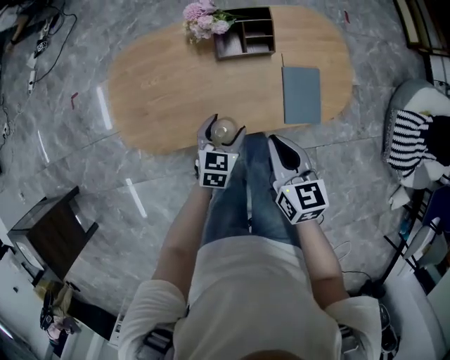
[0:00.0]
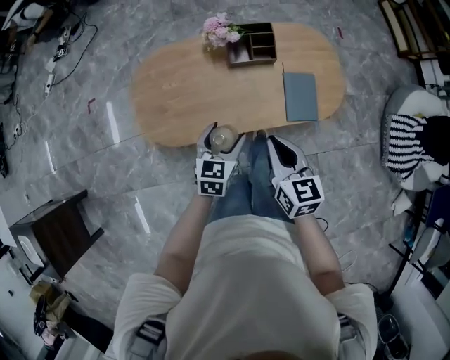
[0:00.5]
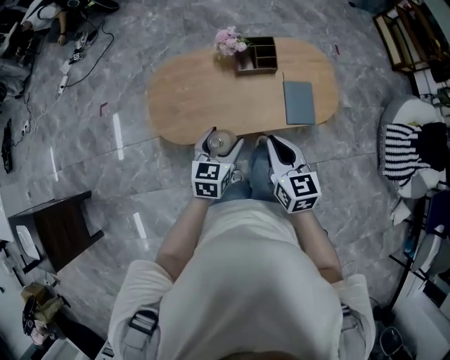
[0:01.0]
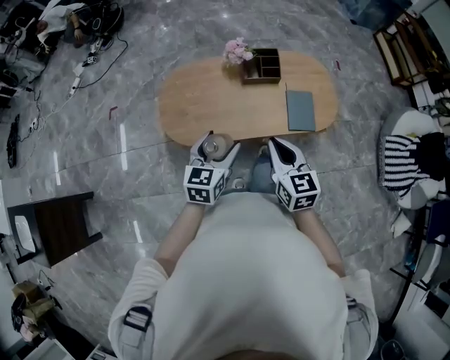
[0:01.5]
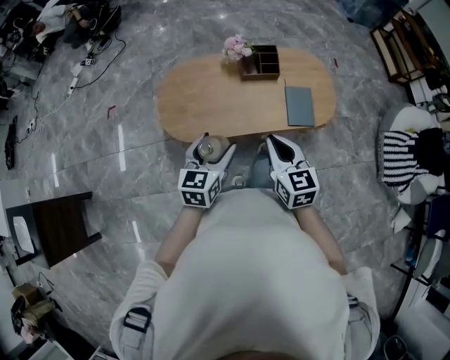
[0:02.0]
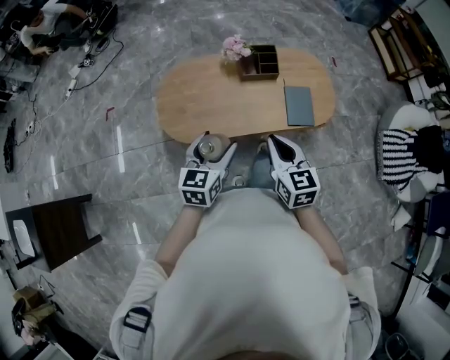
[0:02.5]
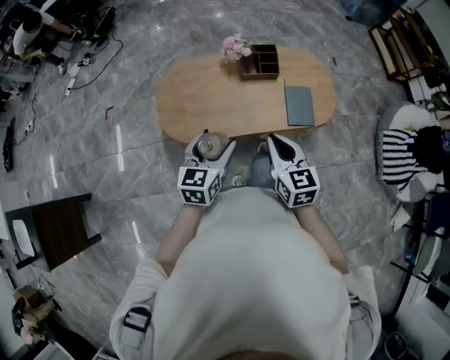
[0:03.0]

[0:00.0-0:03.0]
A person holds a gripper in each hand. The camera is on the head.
0:00.0 to 0:01.5: Both grippers travel together upward and backward, about 25 cm.
0:01.5 to 0:03.0: The grippers make only small movements.

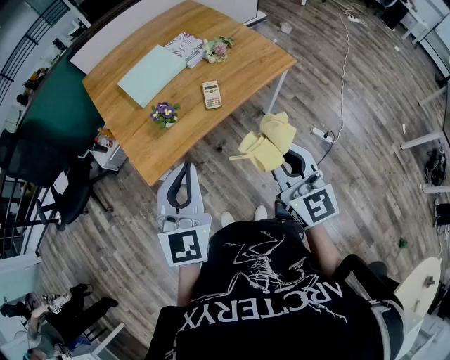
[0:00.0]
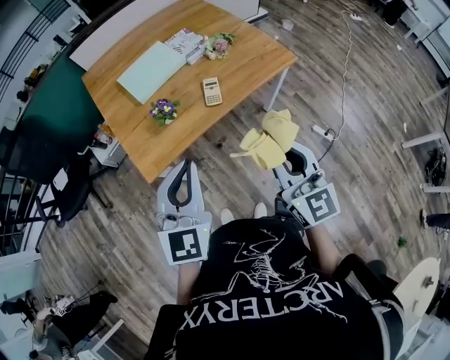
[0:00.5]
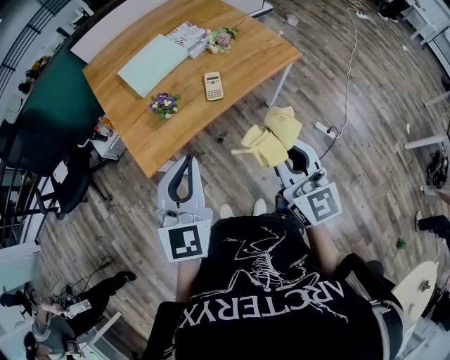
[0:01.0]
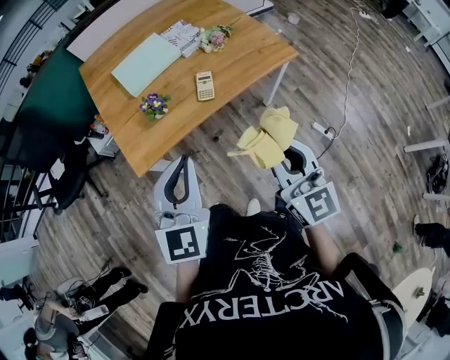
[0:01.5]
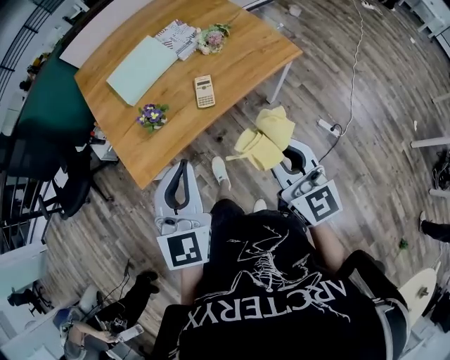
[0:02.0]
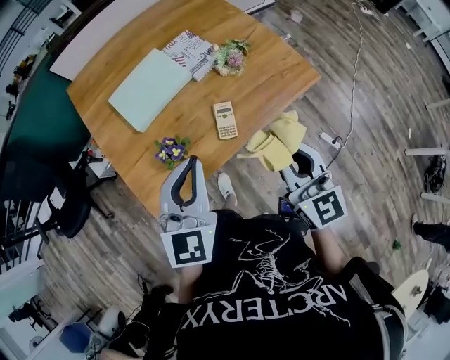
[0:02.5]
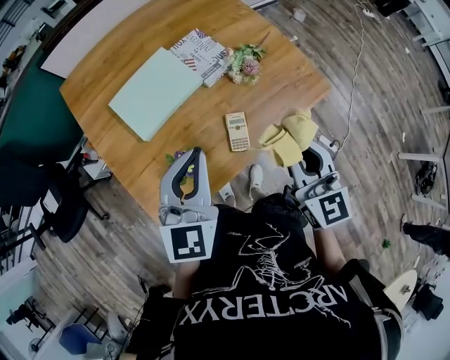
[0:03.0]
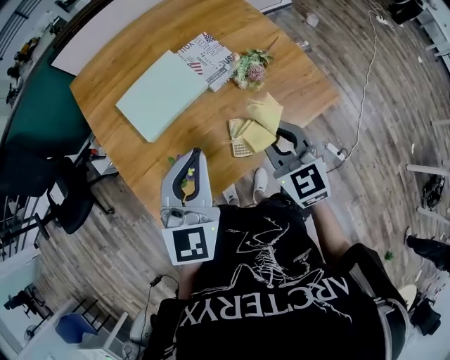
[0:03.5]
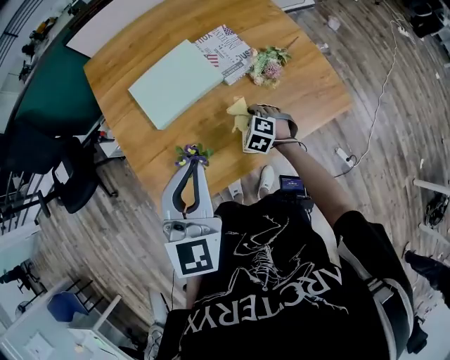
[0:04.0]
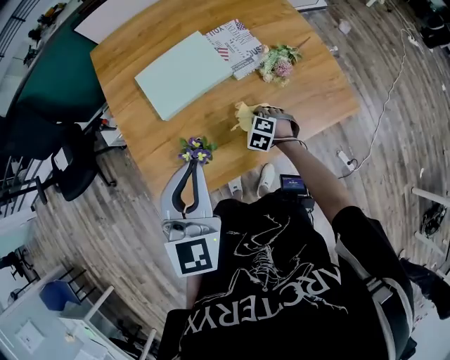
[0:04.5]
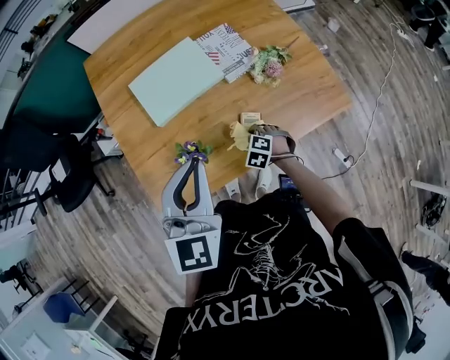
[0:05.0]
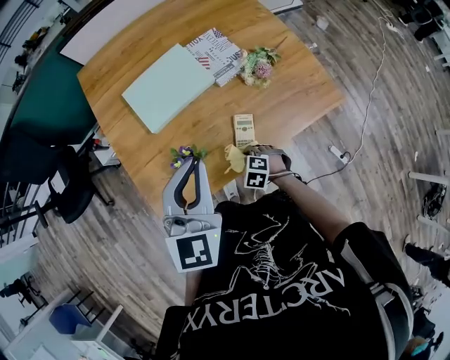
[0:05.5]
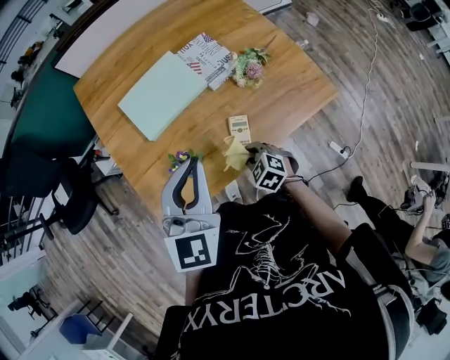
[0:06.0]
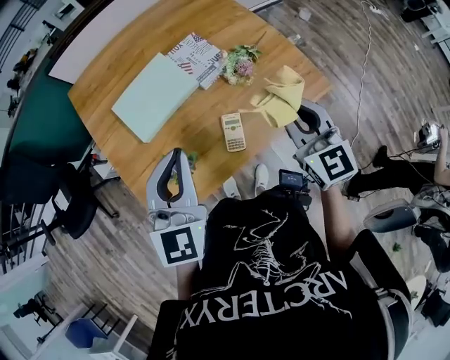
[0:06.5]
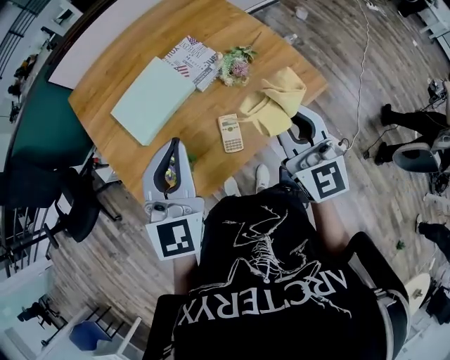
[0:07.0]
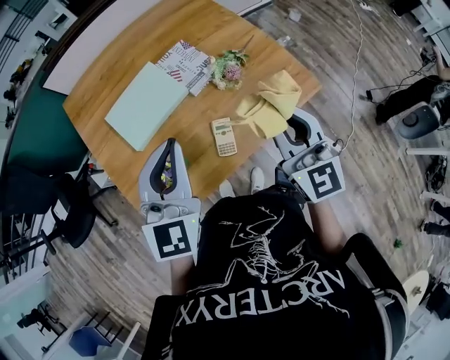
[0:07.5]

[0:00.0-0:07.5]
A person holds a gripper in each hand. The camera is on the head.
0:00.0 to 0:02.0: The right gripper is displaced forward and to the right by about 10 cm, while the left gripper shifts about 10 cm to the right and forward.
0:02.0 to 0:04.0: The right gripper travels forward and downward by about 50 cm, and points its fingers approximately 60 degrees further downward. The left gripper heads forward, covering roughly 25 cm.
0:04.0 to 0:05.5: The right gripper goes some 15 cm backward.
0:05.5 to 0:07.5: The left gripper ends up about 5 cm from where it was. Meanwhile the right gripper goes approximately 40 cm upward, and points its fingers about 70 degrees further upward.

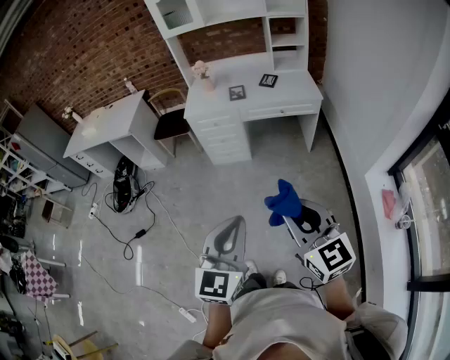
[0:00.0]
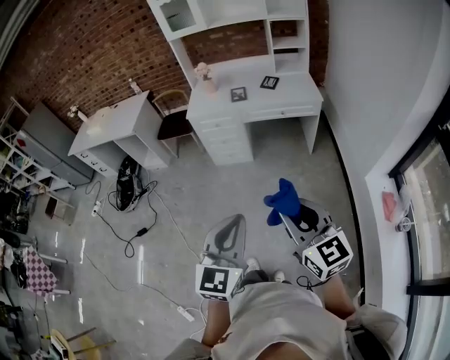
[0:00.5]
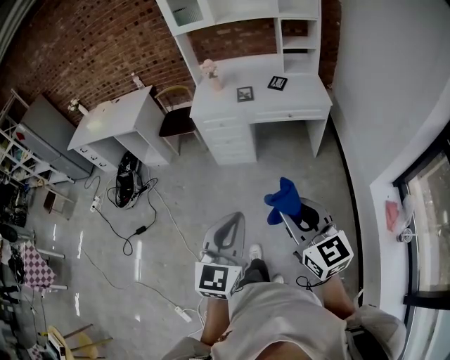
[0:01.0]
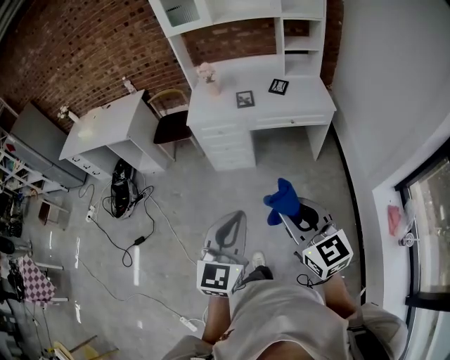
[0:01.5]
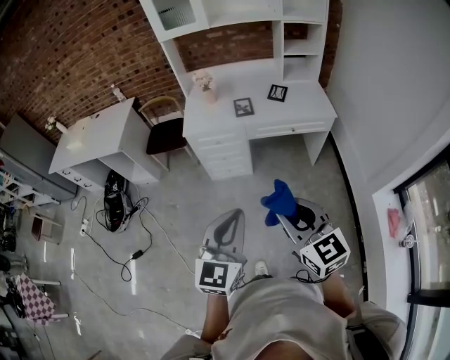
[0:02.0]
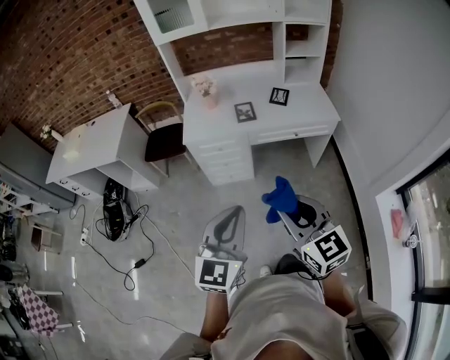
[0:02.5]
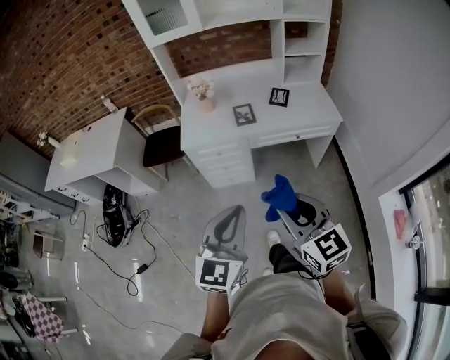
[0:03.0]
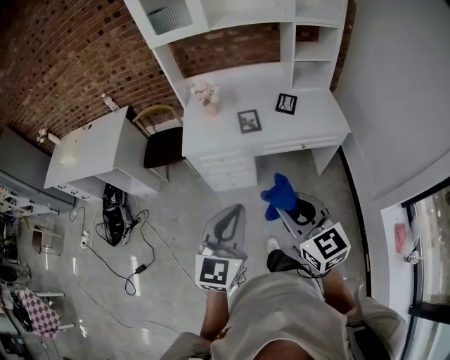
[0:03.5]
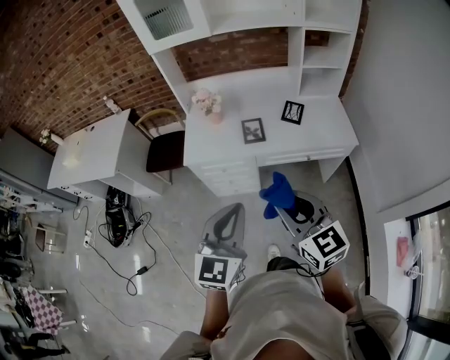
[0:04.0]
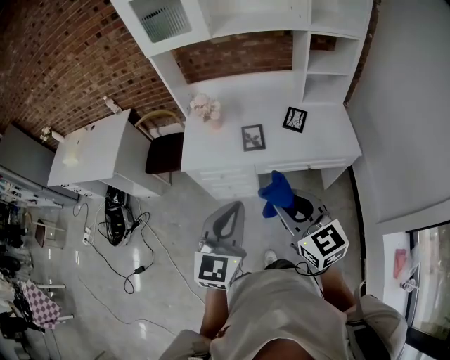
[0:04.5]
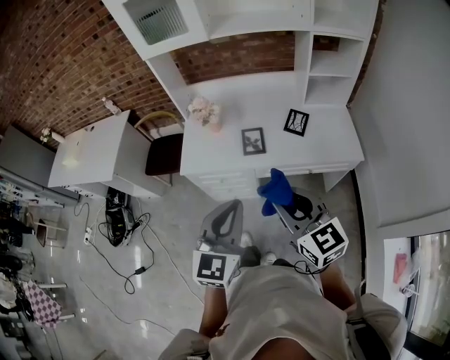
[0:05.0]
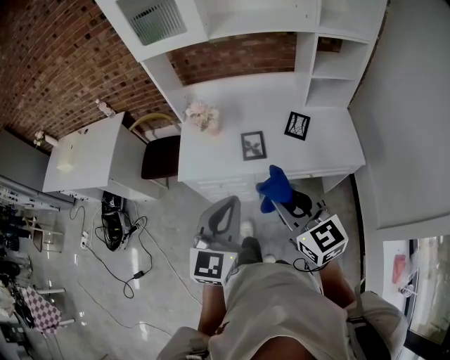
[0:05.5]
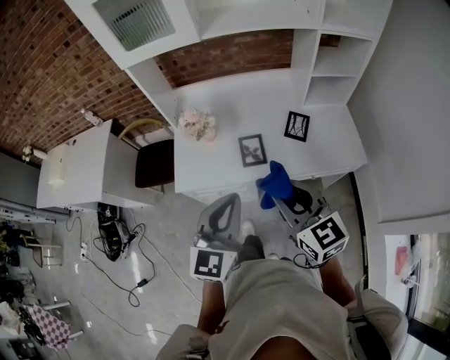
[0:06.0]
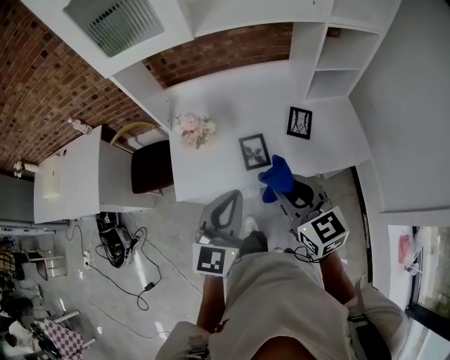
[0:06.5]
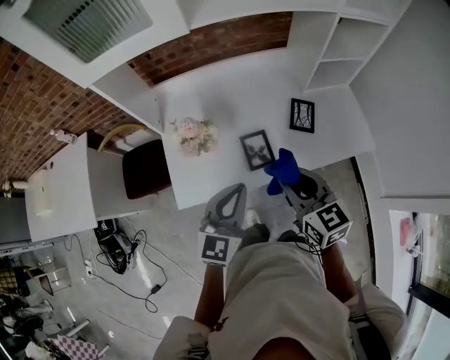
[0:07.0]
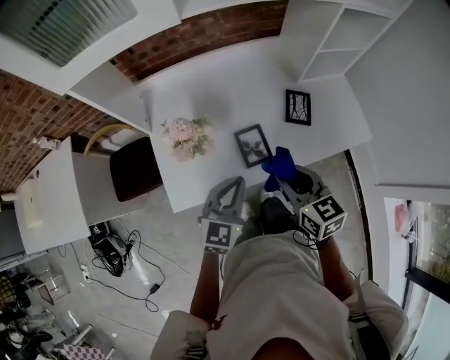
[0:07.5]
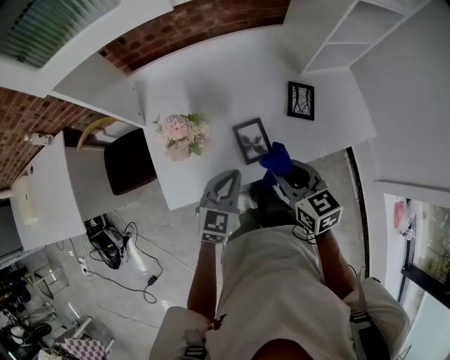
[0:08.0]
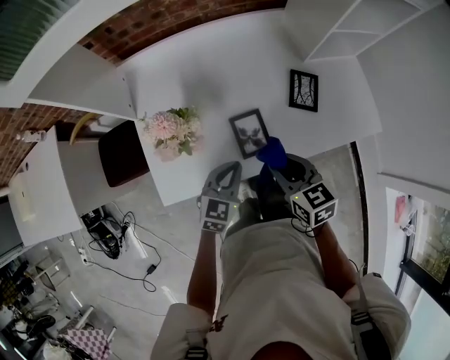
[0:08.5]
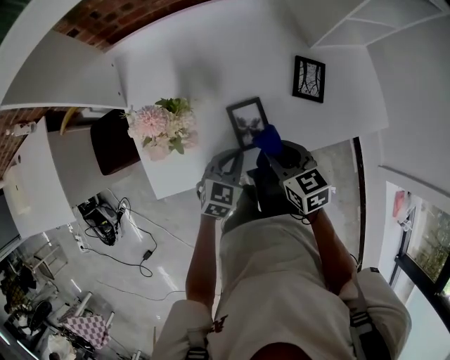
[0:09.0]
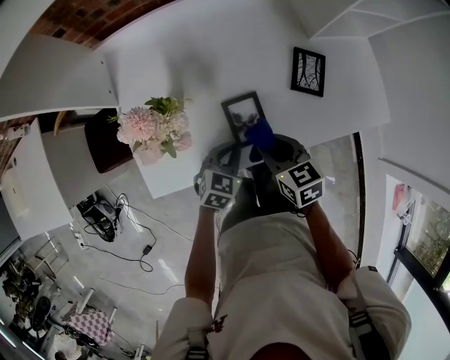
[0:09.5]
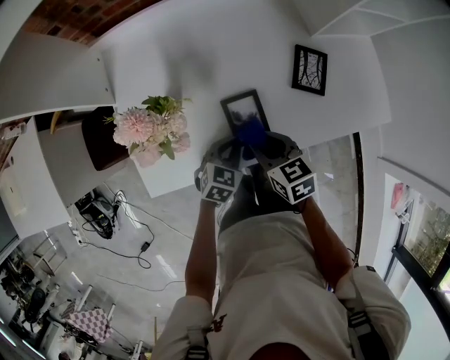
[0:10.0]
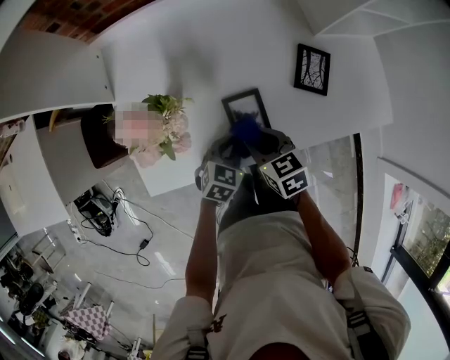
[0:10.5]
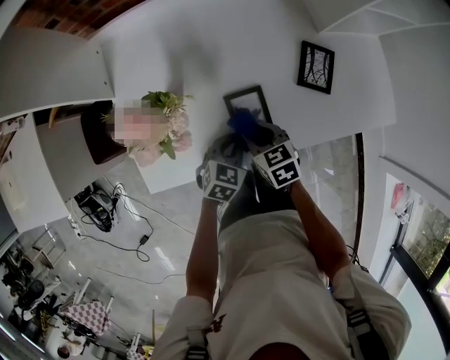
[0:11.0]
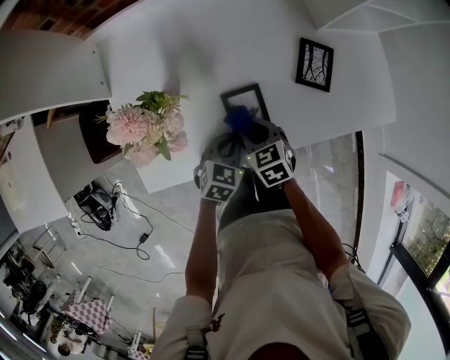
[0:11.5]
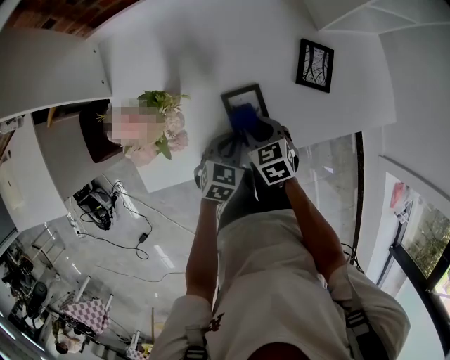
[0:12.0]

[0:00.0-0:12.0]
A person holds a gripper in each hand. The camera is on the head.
0:00.0 to 0:02.0: The grippers both shift forward by about 25 cm.
0:02.0 to 0:04.0: The two grippers go about 25 cm forward.
0:04.0 to 0:06.0: Both grippers travel together forward, about 20 cm.
0:06.0 to 0:08.0: Both grippers travel together downward and forward, roughly 25 cm. The right gripper swivels approximately 30 degrees, while the left gripper swivels some 30 degrees.
0:08.0 to 0:10.0: Both grippers travel together downward, roughly 15 cm. The left gripper rotates roughly 20 degrees.
0:10.0 to 0:12.0: The right gripper is displaced downward by approximately 5 cm.

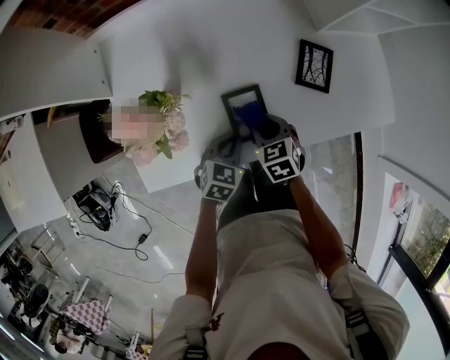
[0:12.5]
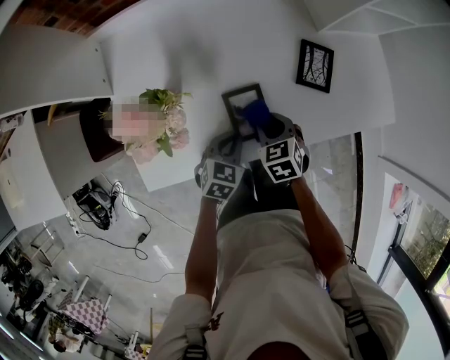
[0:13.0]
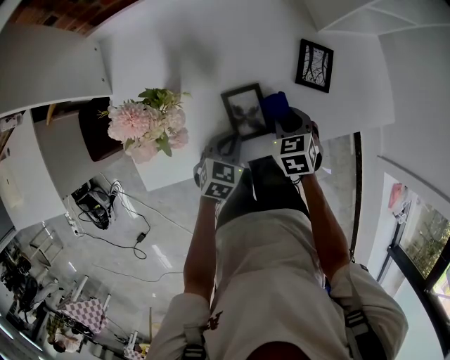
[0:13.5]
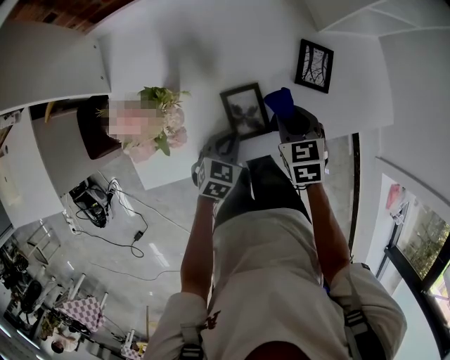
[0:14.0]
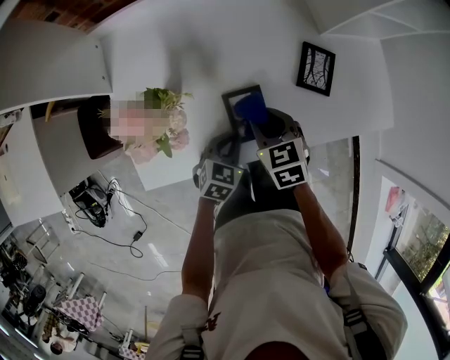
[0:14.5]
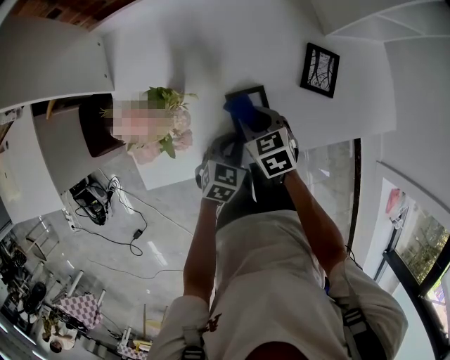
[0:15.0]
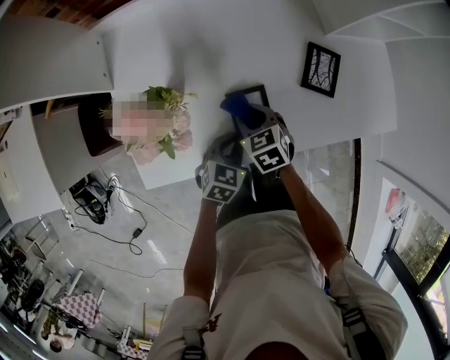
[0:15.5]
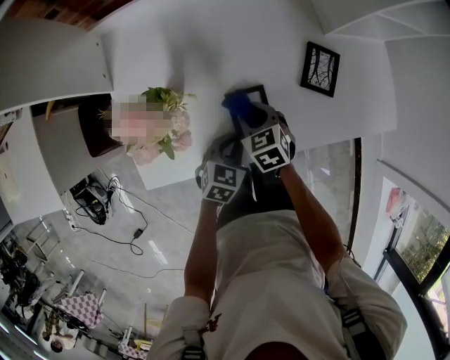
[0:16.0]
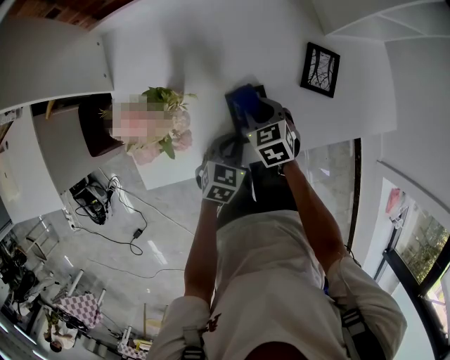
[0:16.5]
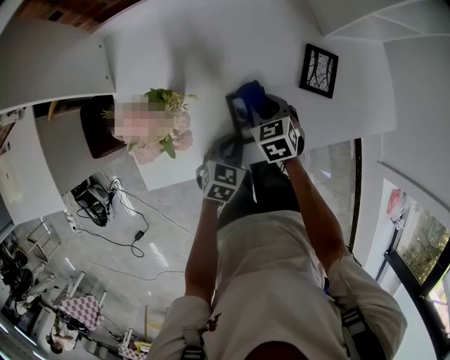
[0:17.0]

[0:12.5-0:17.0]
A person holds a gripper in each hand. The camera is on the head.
0:12.5 to 0:14.5: The right gripper moves upward, approximately 5 cm, and moves approximately 5 cm to the right and comes back.
0:14.5 to 0:17.0: The right gripper moves downward, some 5 cm.
